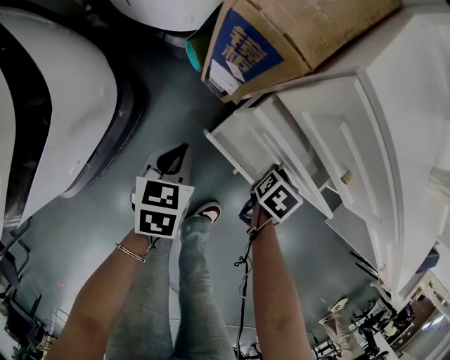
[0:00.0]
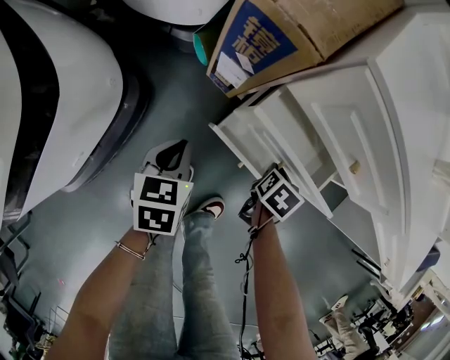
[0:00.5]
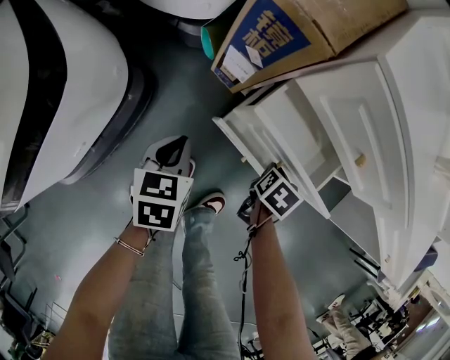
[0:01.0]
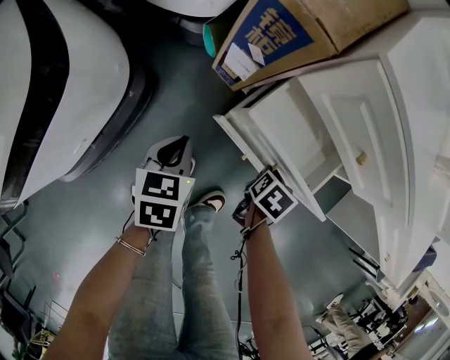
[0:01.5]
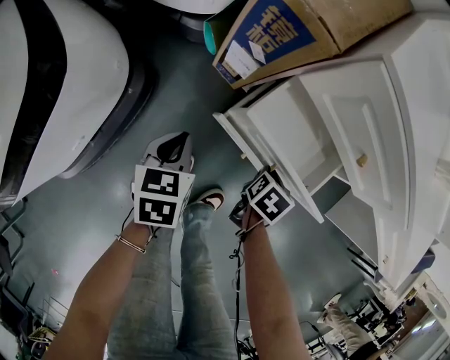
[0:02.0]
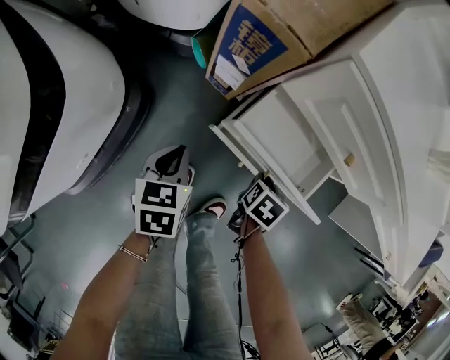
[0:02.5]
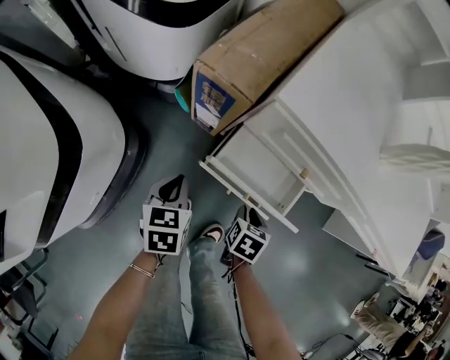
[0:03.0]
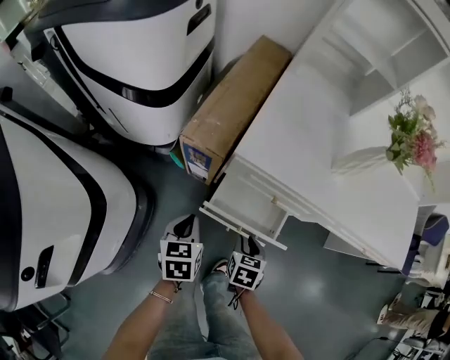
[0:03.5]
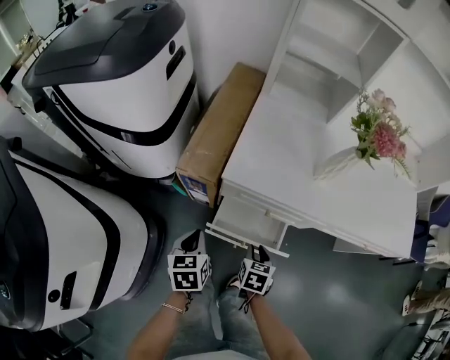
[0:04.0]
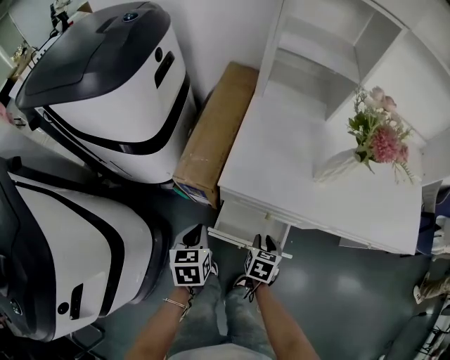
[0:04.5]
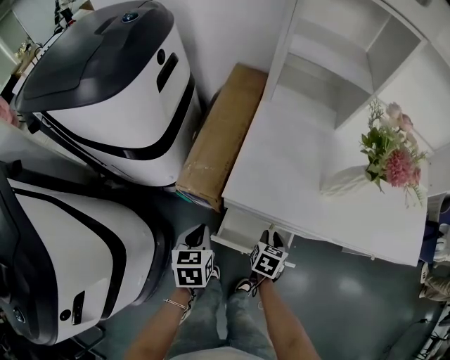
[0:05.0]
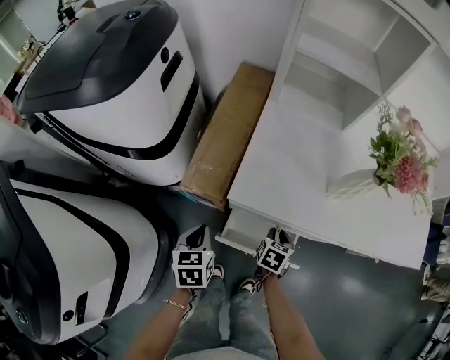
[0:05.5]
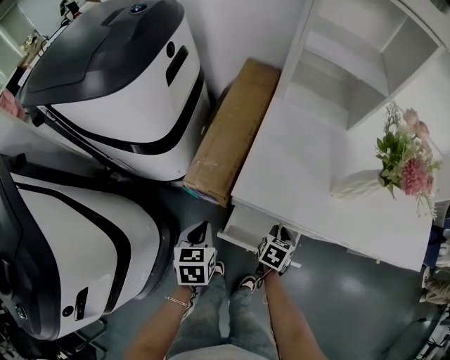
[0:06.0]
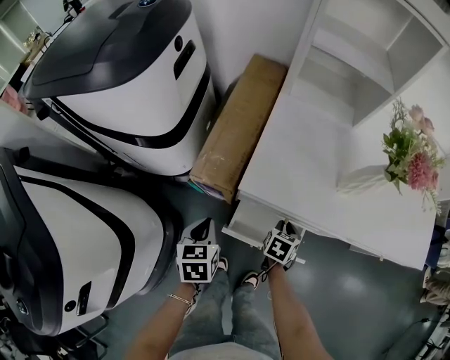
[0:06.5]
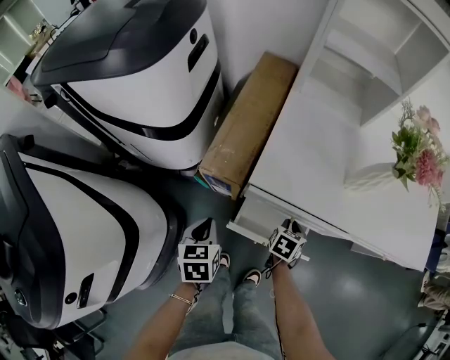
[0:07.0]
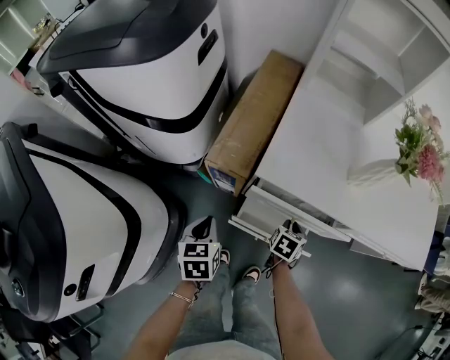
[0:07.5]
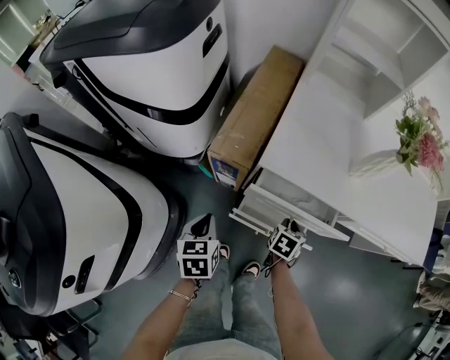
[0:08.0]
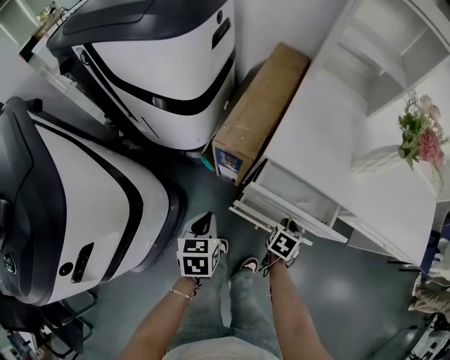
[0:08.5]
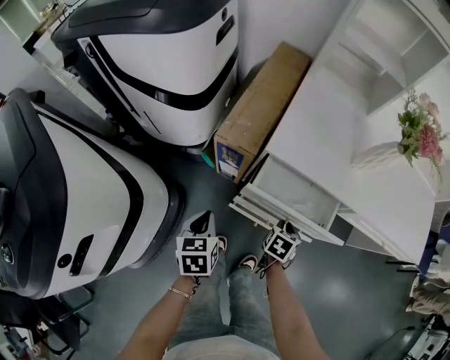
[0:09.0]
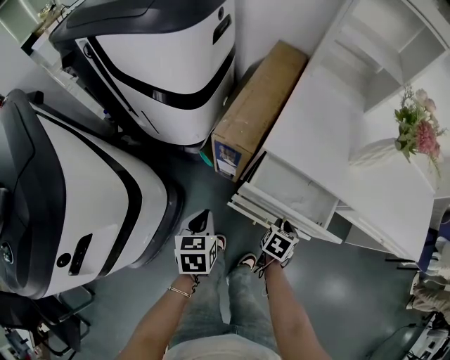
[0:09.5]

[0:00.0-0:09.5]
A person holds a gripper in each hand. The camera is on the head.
0:00.0 to 0:02.0: The right gripper shifts roughly 10 cm backward.
0:02.0 to 0:04.0: Both grippers move upward, approximately 25 cm.
0:04.0 to 0:05.5: The right gripper heads forward, covering approximately 10 cm; the left gripper heads forward, covering about 10 cm.
0:05.5 to 0:07.5: The left gripper goes about 5 cm backward.
0:07.5 to 0:09.5: The two grippers go approximately 10 cm backward.

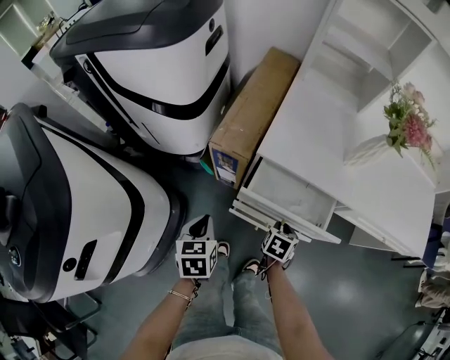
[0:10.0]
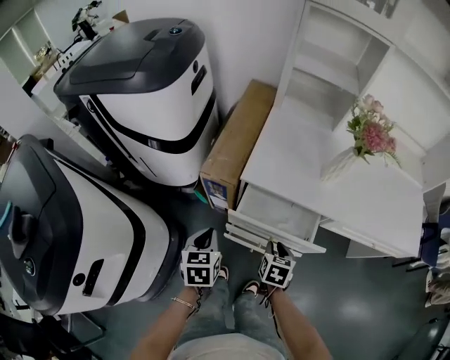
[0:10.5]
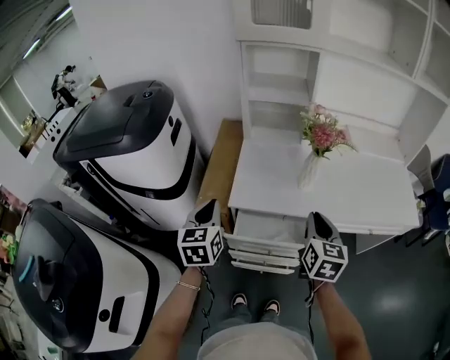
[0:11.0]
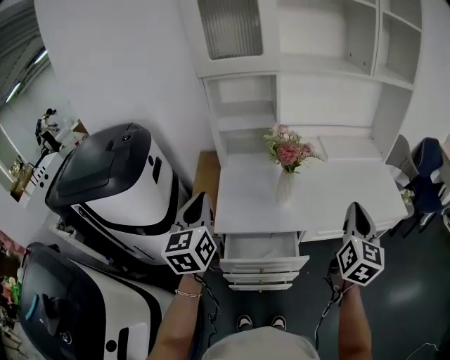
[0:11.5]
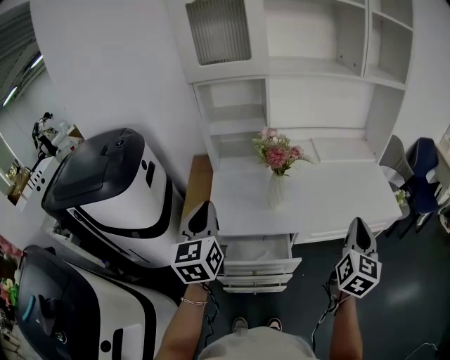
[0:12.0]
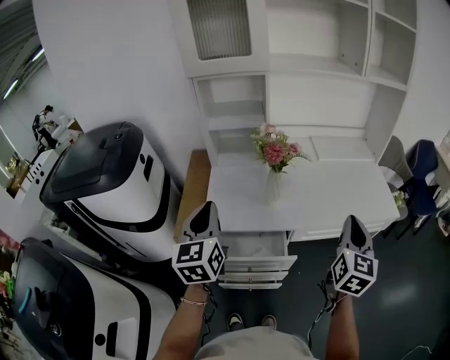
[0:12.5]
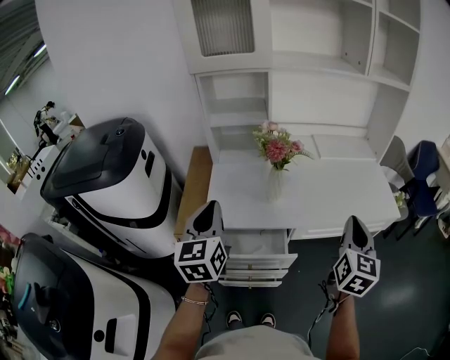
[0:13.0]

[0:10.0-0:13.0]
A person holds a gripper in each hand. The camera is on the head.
0:10.0 to 0:11.5: The right gripper moves upward and to the right, approximately 50 cm, and angles its fingers upward, by roughly 60 degrees. Meanwhile the left gripper is displaced upward and forward by roughly 40 cm, and tilts its fingers roughly 40 degrees upward.
0:11.5 to 0:13.0: The left gripper travels to the right by some 5 cm. Meanwhile the right gripper shifts by some 5 cm.

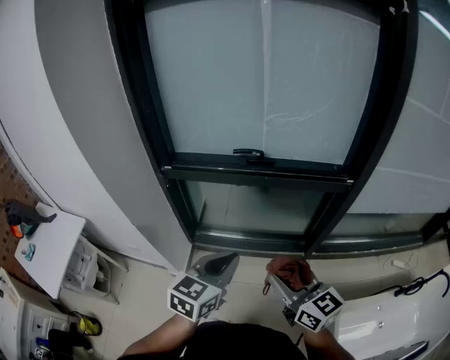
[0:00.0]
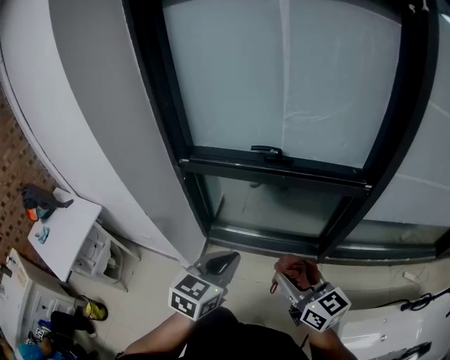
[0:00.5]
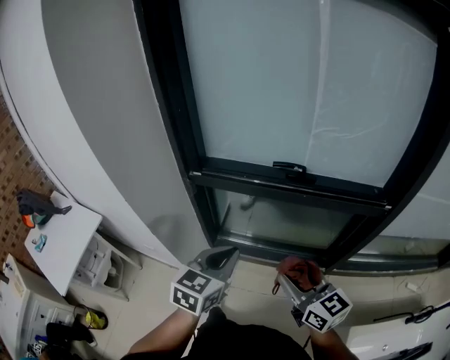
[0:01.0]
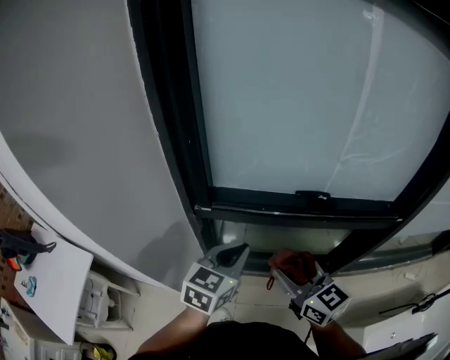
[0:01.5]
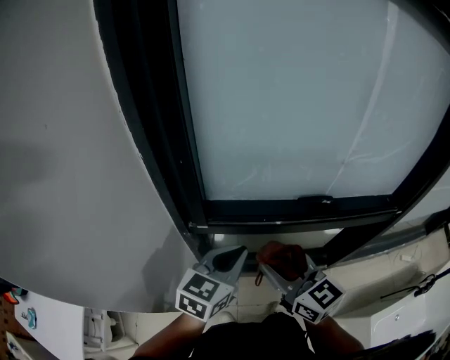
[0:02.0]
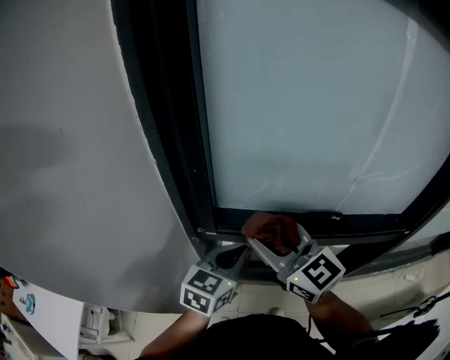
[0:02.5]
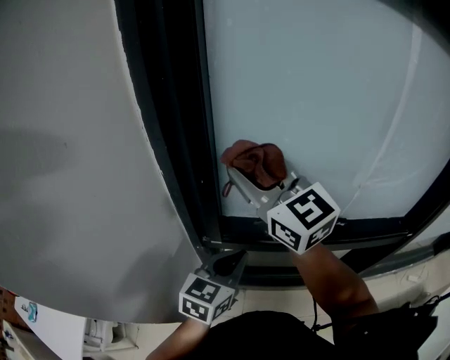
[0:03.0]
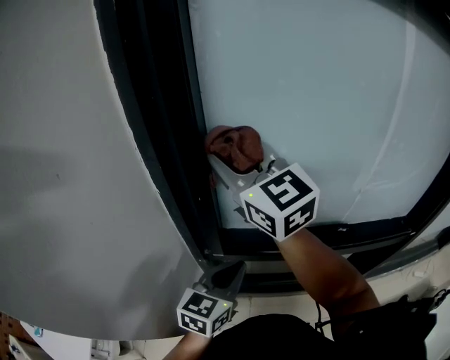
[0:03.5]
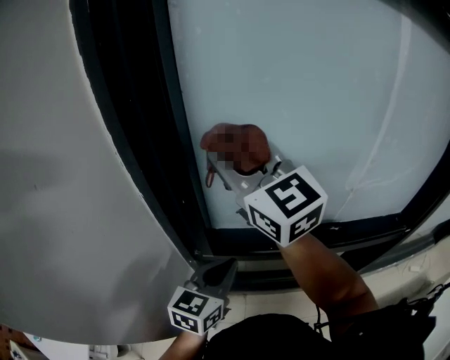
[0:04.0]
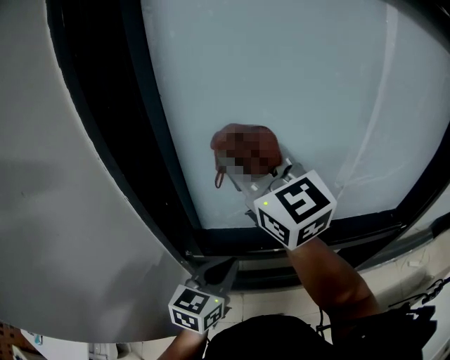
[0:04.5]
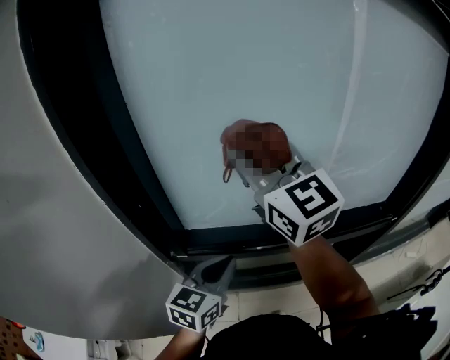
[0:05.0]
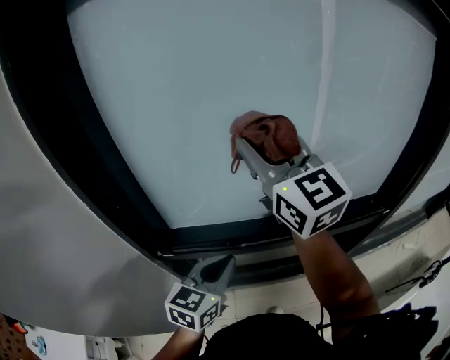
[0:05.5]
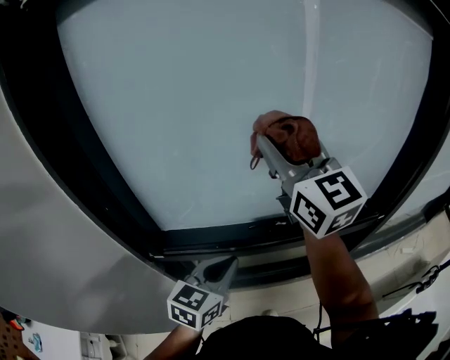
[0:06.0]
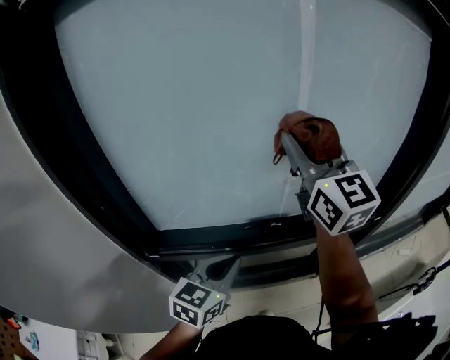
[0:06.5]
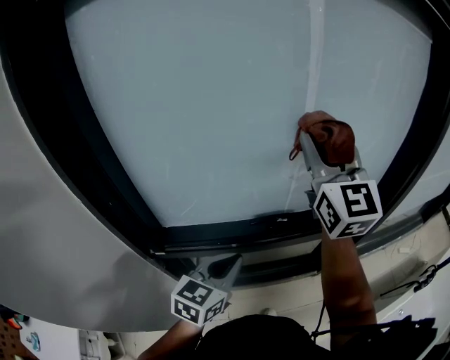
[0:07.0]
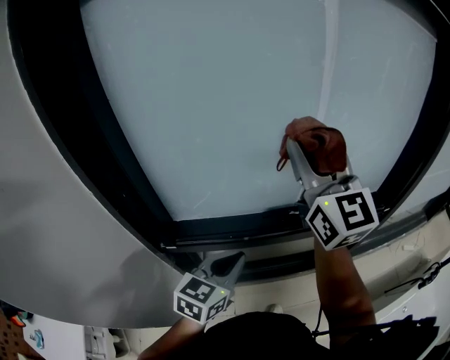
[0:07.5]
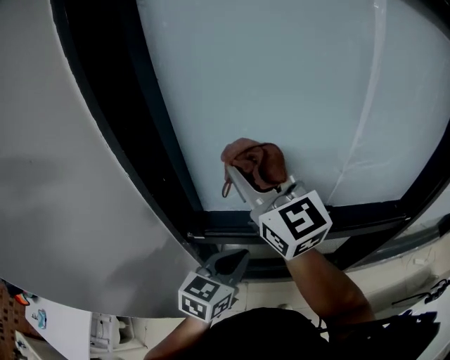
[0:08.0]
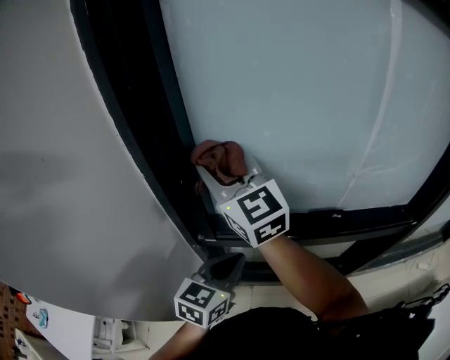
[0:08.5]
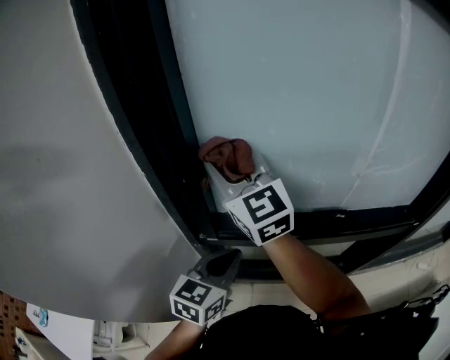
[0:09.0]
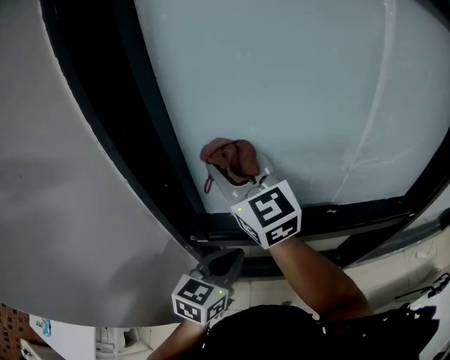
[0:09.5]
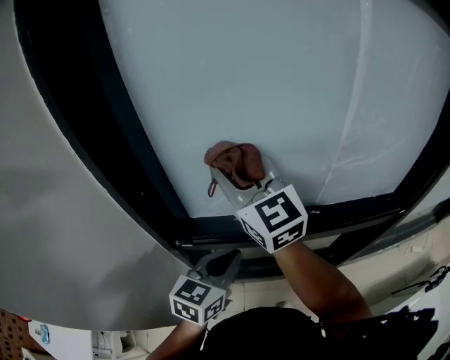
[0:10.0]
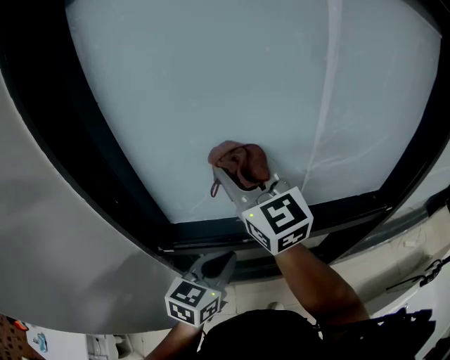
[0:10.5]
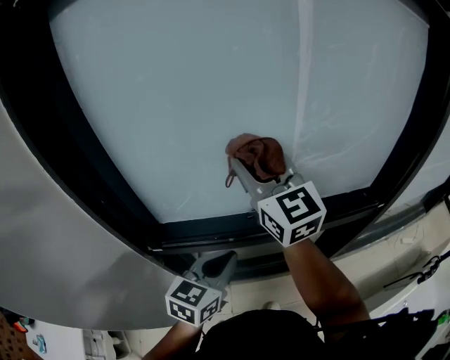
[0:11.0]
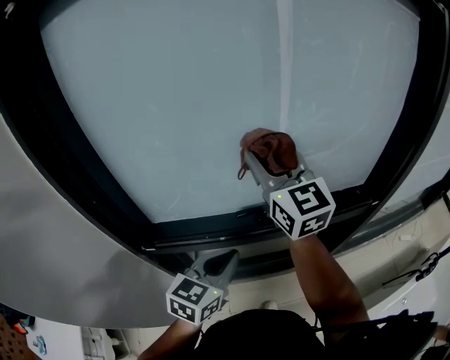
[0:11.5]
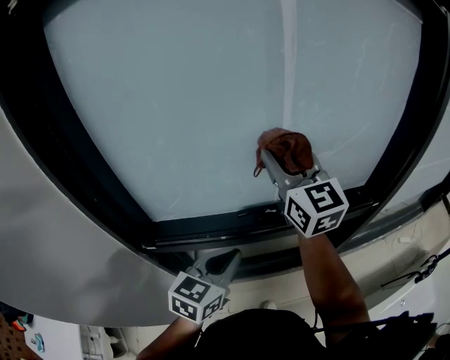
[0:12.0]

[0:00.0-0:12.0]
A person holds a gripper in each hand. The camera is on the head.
0:00.0 to 0:02.0: Both grippers travel together forward and to the left, roughly 40 cm.
0:02.0 to 0:04.0: The right gripper goes some 30 cm upward and forward, and rotates some 20 degrees. The left gripper travels forward by some 5 cm.
0:04.0 to 0:06.0: The right gripper moves to the right, about 25 cm; the left gripper travels to the right by some 15 cm.
0:06.0 to 0:08.0: The right gripper is displaced to the left and backward by approximately 20 cm. The left gripper heads to the left, covering approximately 10 cm.
0:08.0 to 0:10.0: The right gripper moves some 10 cm to the left and comes back.
0:10.0 to 0:12.0: The right gripper is displaced to the right by about 25 cm. Meanwhile the left gripper goes about 10 cm to the right.

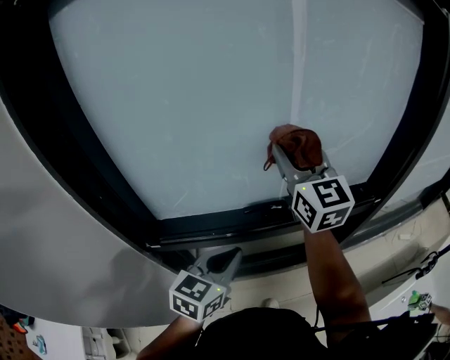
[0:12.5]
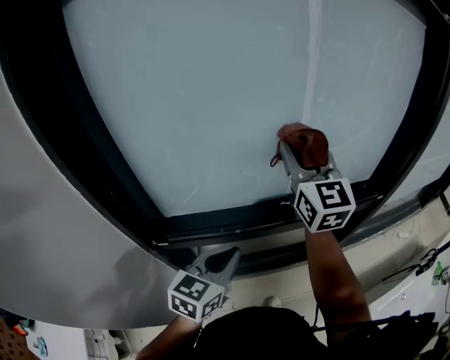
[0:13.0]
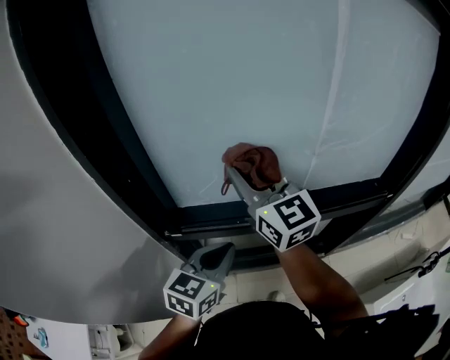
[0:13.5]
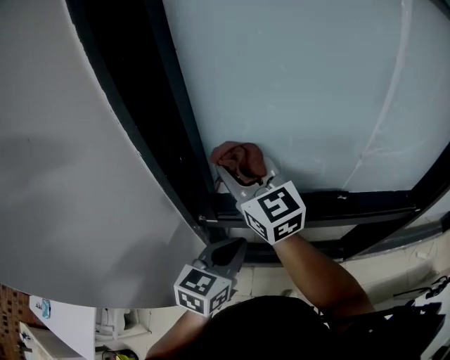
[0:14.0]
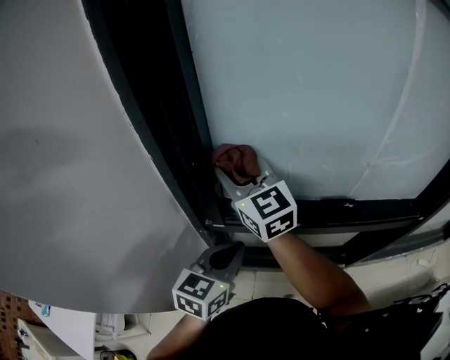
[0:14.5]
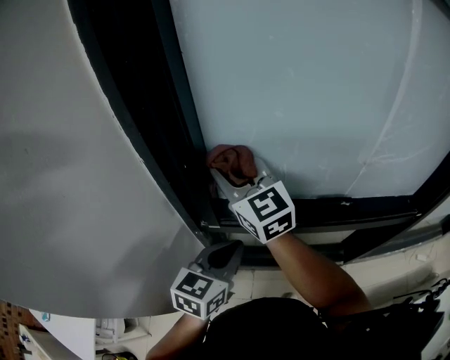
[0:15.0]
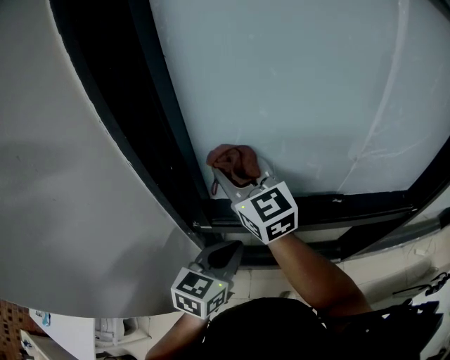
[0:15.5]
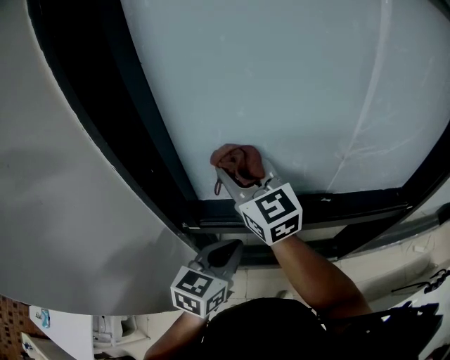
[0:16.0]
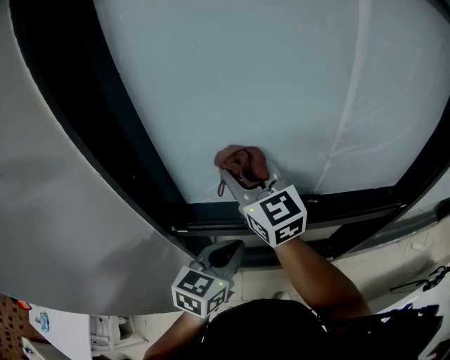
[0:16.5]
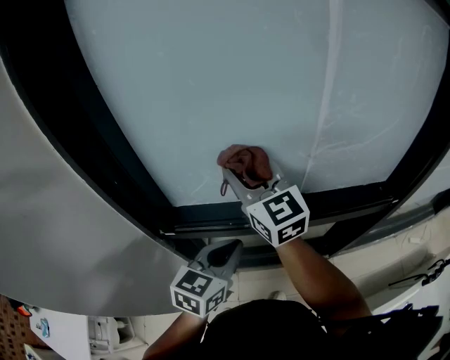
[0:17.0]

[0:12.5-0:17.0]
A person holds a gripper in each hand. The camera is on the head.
0:12.5 to 0:14.5: The left gripper ends up roughly 20 cm from where it was, while the right gripper shifts by approximately 35 cm, and turns by some 30 degrees.
0:14.5 to 0:17.0: The two grippers go about 15 cm to the right.
